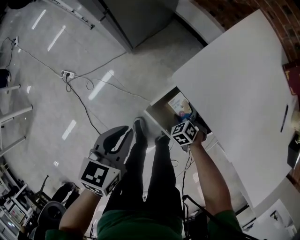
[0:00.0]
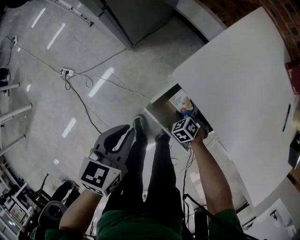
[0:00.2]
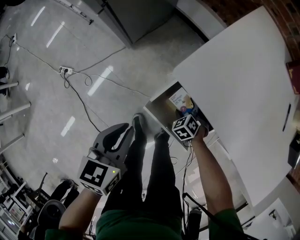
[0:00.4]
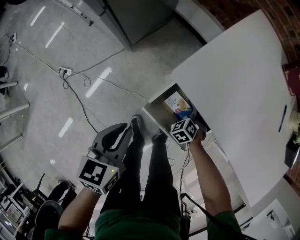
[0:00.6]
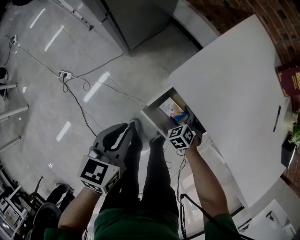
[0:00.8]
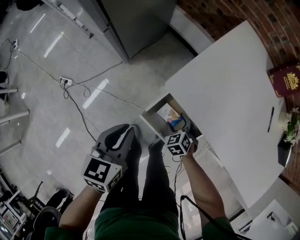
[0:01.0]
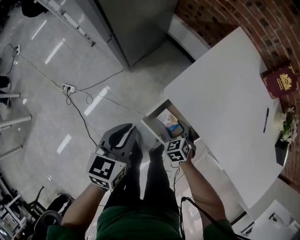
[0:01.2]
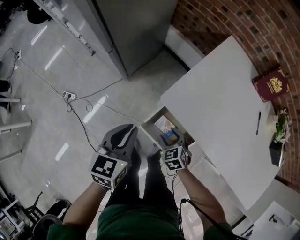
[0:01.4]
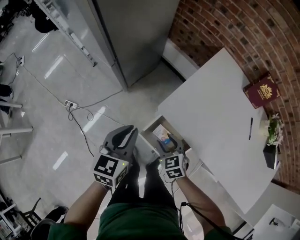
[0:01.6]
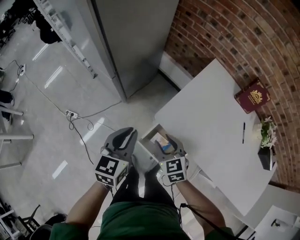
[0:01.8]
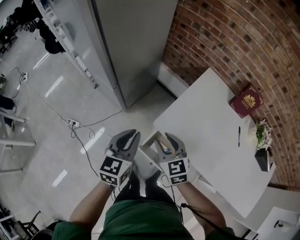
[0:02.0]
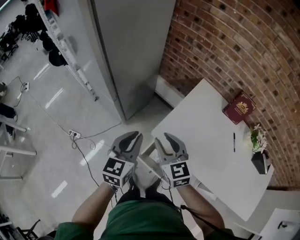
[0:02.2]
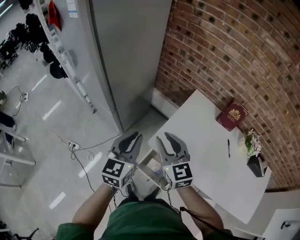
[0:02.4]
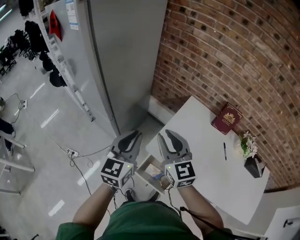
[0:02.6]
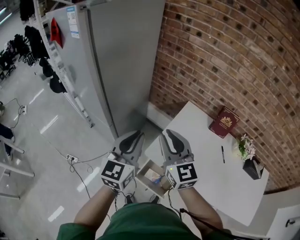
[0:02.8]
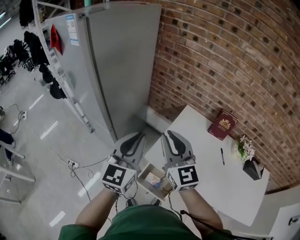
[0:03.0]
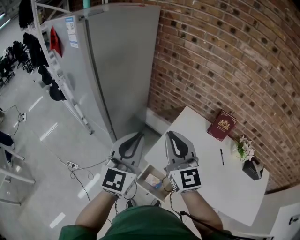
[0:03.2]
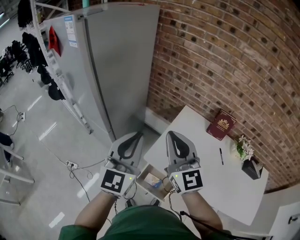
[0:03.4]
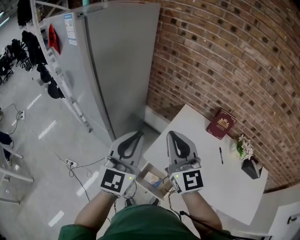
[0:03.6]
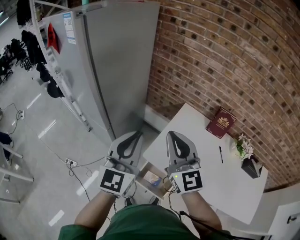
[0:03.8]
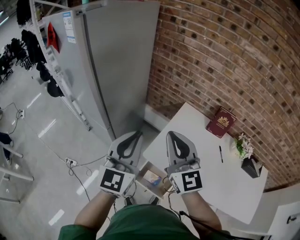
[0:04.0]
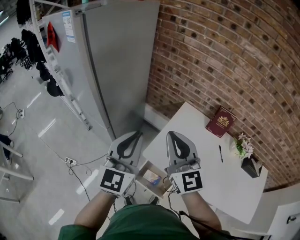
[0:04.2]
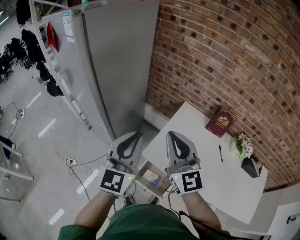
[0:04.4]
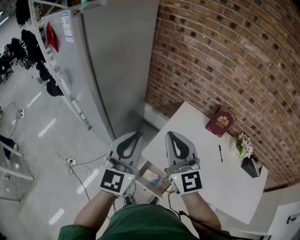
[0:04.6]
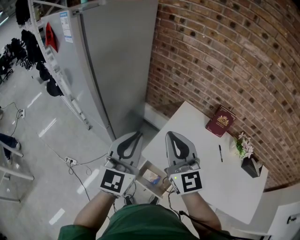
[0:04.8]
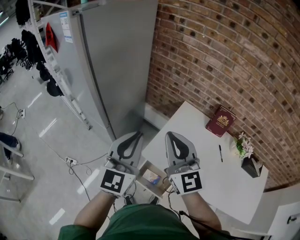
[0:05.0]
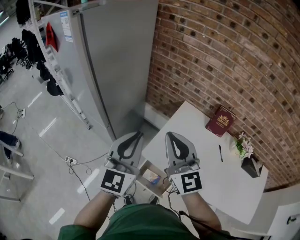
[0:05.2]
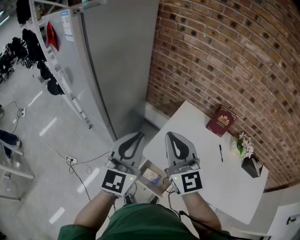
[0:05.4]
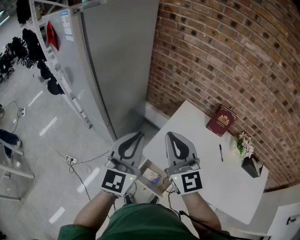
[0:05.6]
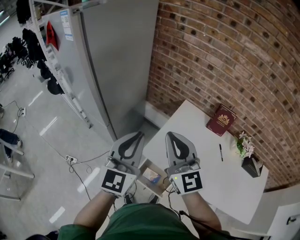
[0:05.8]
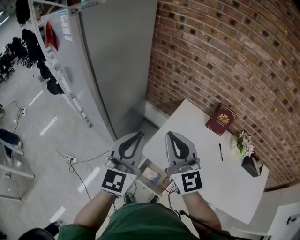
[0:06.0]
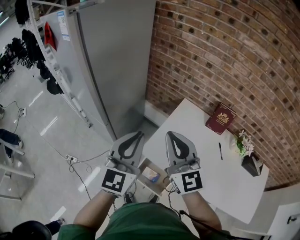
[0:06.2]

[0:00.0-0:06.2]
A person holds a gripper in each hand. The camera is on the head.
0:00.0 to 0:01.6: The right gripper moves upward, about 25 cm, changes its angle by approximately 30 degrees, and closes its fingers. Meanwhile the left gripper moves upward and forward, approximately 15 cm.
0:01.6 to 0:03.2: The grippers both shift upward by about 40 cm. The left gripper points its fingers approximately 30 degrees further upward. Meanwhile the right gripper tips its fingers upward by roughly 50 degrees, and closes up.
0:03.2 to 0:06.2: The grippers make only small movements.

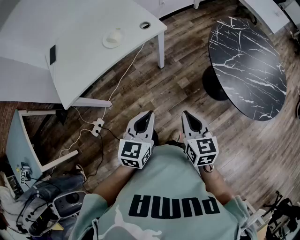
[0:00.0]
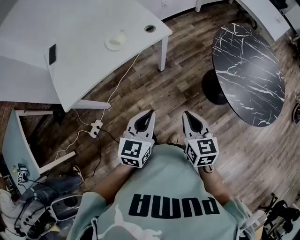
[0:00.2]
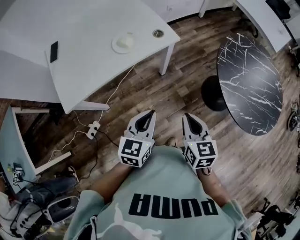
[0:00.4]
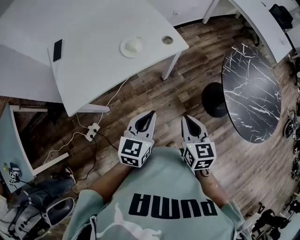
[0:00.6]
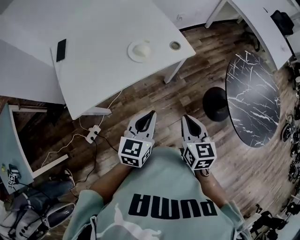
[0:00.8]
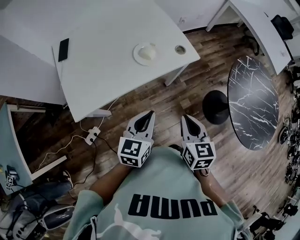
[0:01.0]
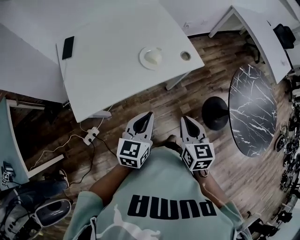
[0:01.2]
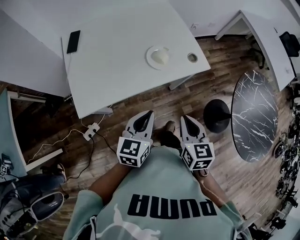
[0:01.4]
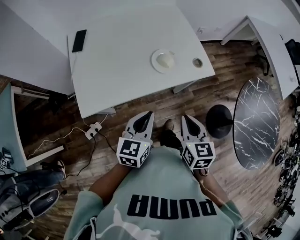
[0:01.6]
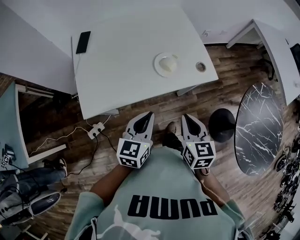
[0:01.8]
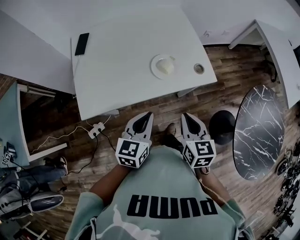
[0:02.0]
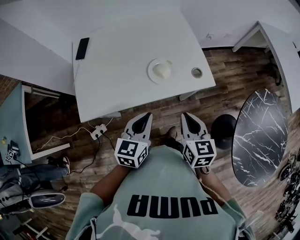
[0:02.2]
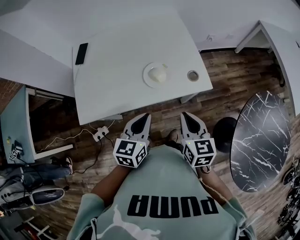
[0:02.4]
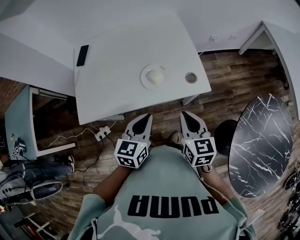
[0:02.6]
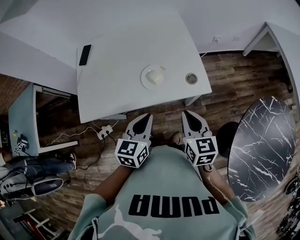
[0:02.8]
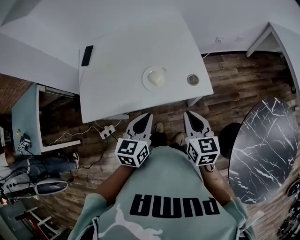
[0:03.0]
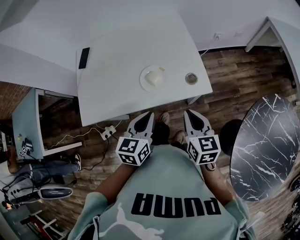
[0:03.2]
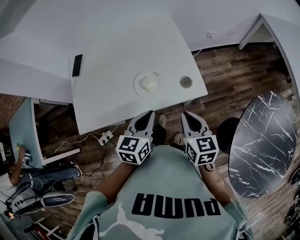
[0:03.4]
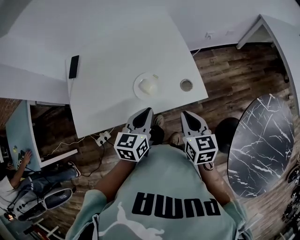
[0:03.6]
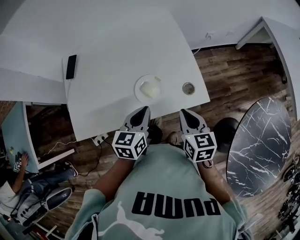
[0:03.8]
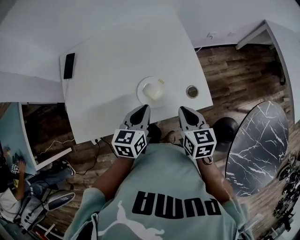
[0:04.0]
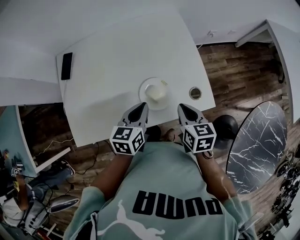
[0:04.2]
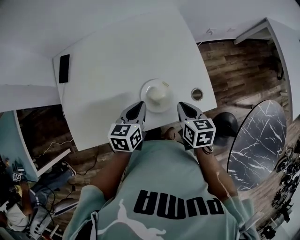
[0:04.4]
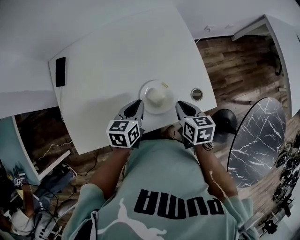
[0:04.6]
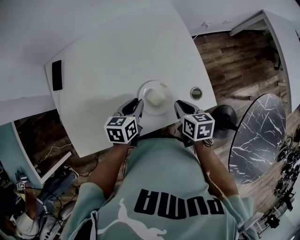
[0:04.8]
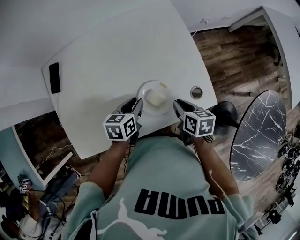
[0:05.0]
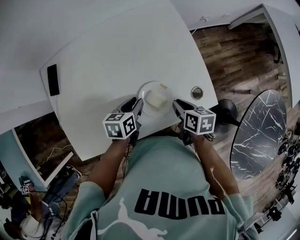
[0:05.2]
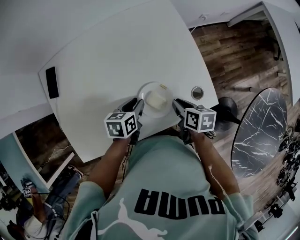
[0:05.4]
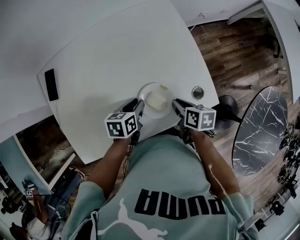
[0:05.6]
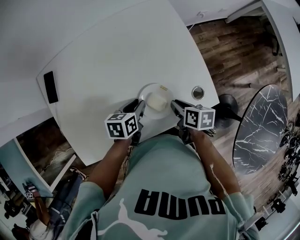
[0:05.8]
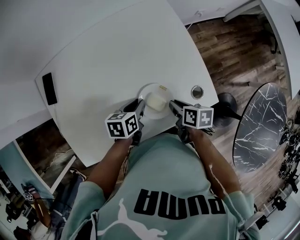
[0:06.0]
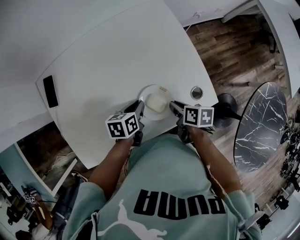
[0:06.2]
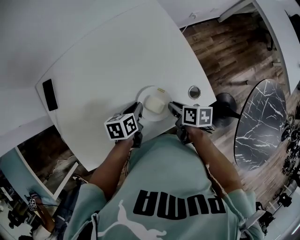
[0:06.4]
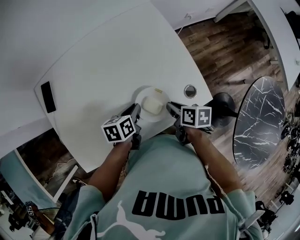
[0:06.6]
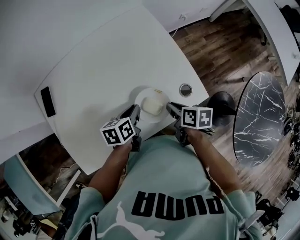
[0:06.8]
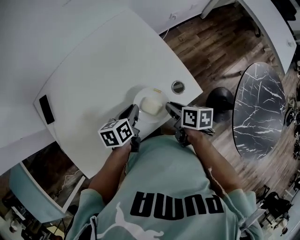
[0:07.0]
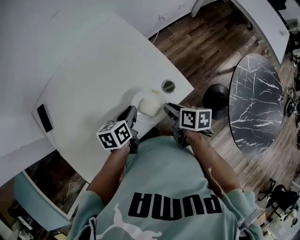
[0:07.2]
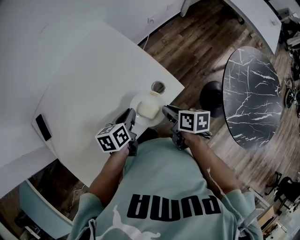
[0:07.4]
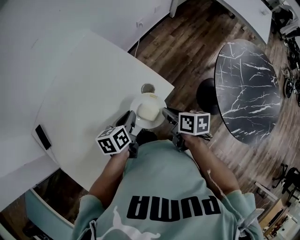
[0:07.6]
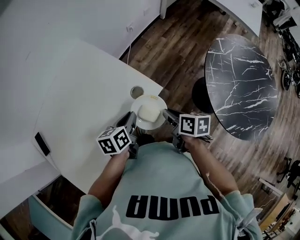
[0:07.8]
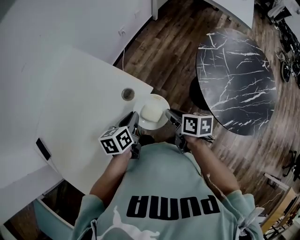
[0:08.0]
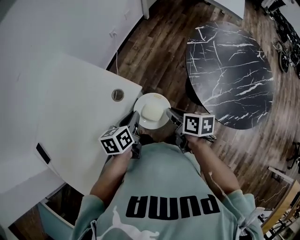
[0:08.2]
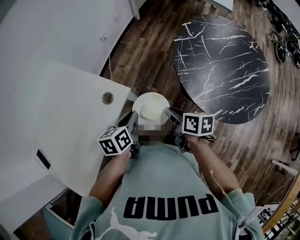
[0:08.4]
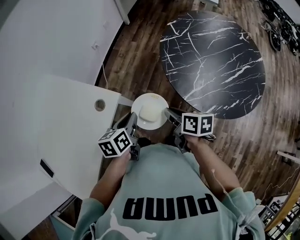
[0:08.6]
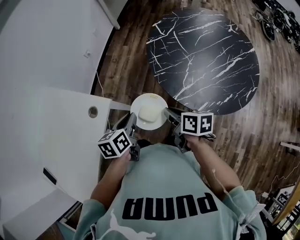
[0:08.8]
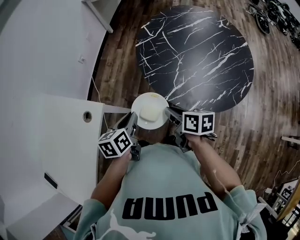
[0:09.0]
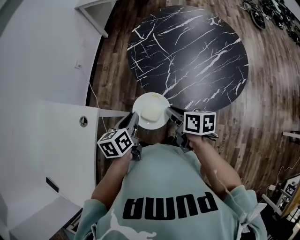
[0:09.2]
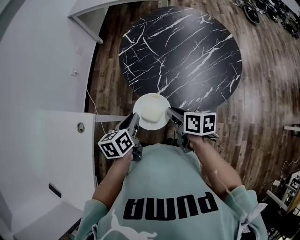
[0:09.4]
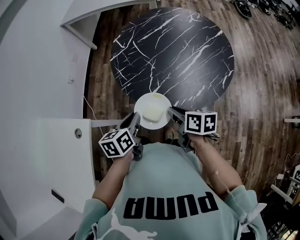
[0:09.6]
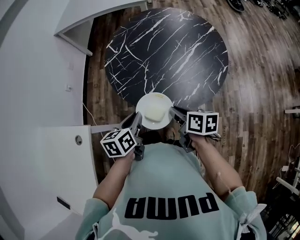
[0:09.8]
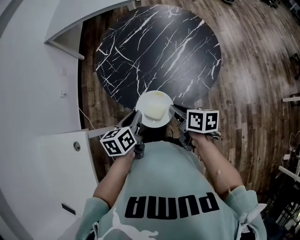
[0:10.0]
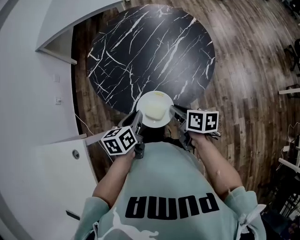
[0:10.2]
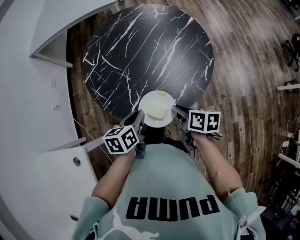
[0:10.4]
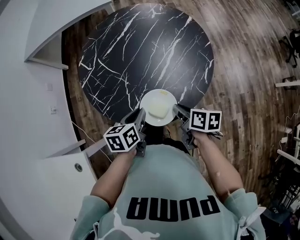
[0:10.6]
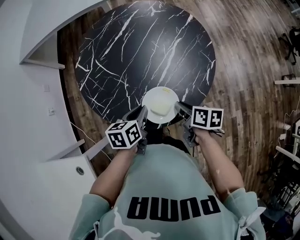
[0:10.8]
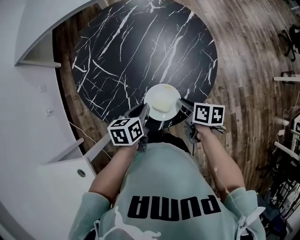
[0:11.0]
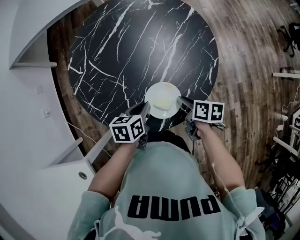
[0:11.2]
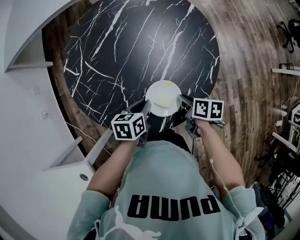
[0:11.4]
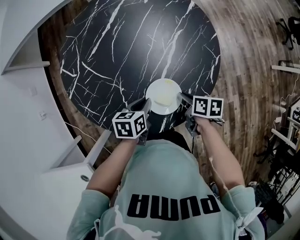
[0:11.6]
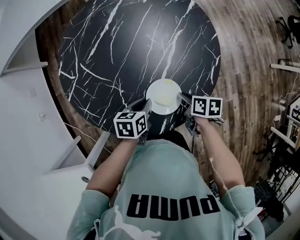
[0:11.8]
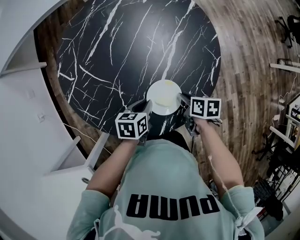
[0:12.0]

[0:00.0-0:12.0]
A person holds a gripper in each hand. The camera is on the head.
0:00.0 to 0:01.6: Both grippers travel together to the left and forward, approximately 30 cm.
0:01.6 to 0:03.0: The grippers both shift to the right and forward by approximately 15 cm.
0:03.0 to 0:04.4: Both grippers travel together forward, downward and to the left, roughly 20 cm. The right gripper rotates approximately 20 degrees.
0:04.4 to 0:06.0: Both grippers travel together downward, roughly 10 cm. The left gripper rotates about 20 degrees, while the right gripper swivels approximately 30 degrees.
0:06.0 to 0:07.6: The right gripper travels to the right, upward and backward by some 20 cm, and rotates approximately 30 degrees, while the left gripper travels to the right and upward by some 15 cm.
0:07.6 to 0:09.0: The grippers both shift to the right by some 35 cm. The left gripper changes its angle by roughly 30 degrees, while the right gripper changes its angle by some 30 degrees.
0:09.0 to 0:10.4: The right gripper changes place by approximately 25 cm, and changes its angle by approximately 30 degrees. Meanwhile the left gripper moves approximately 25 cm, and rotates some 30 degrees.
0:10.4 to 0:12.0: The two grippers go about 15 cm downward and forward. The left gripper rotates roughly 20 degrees.

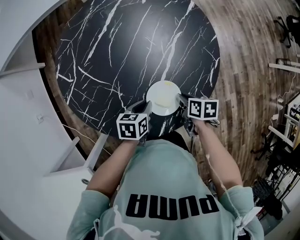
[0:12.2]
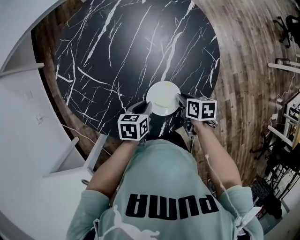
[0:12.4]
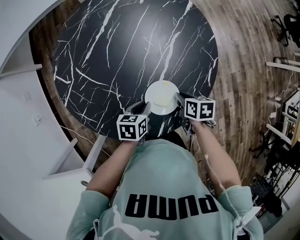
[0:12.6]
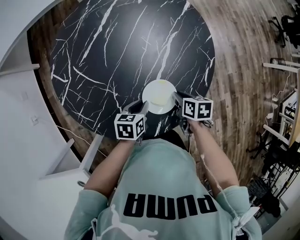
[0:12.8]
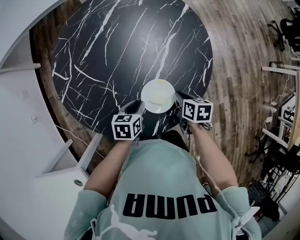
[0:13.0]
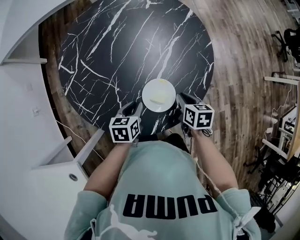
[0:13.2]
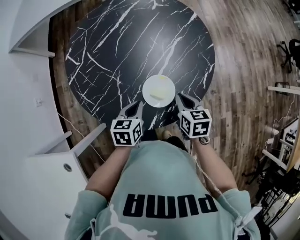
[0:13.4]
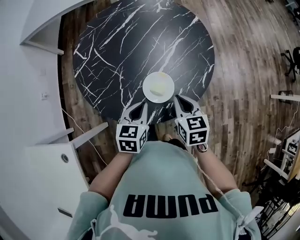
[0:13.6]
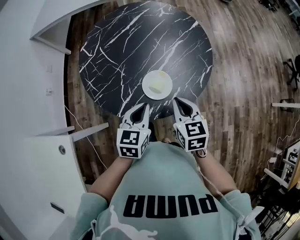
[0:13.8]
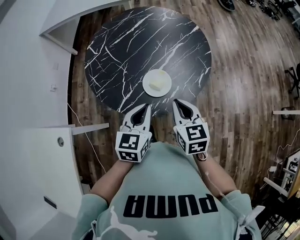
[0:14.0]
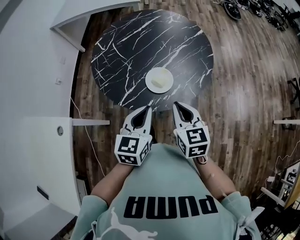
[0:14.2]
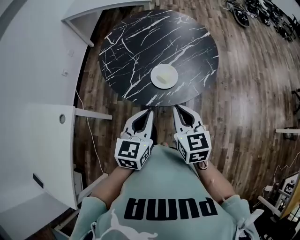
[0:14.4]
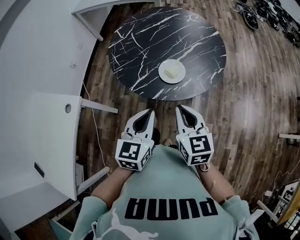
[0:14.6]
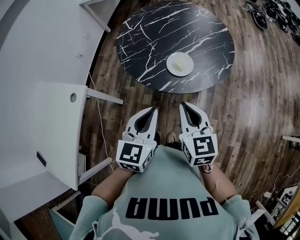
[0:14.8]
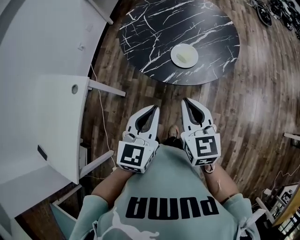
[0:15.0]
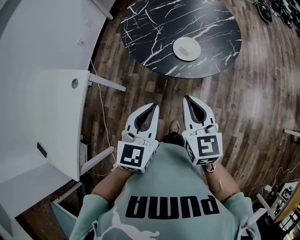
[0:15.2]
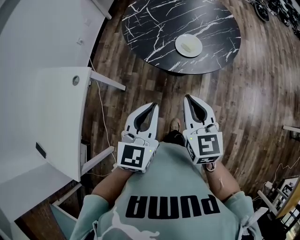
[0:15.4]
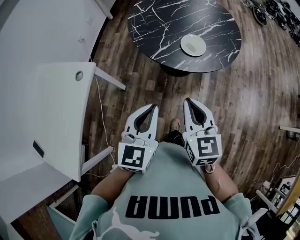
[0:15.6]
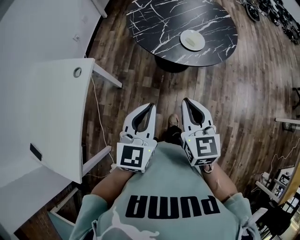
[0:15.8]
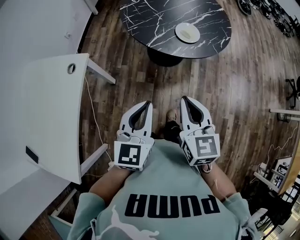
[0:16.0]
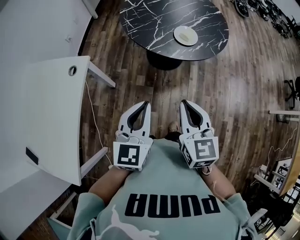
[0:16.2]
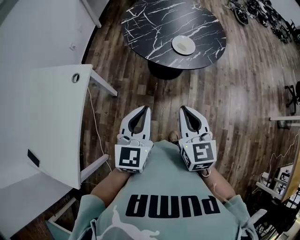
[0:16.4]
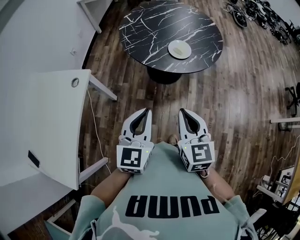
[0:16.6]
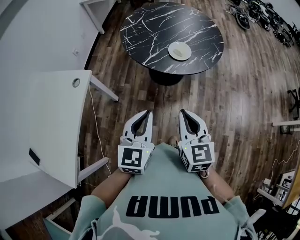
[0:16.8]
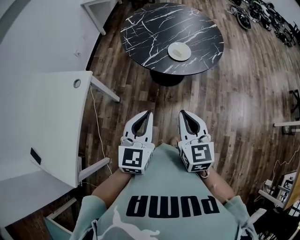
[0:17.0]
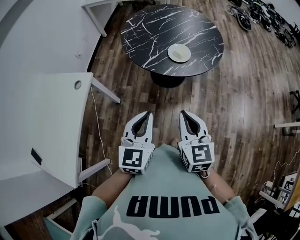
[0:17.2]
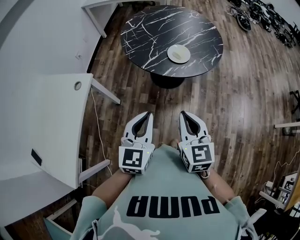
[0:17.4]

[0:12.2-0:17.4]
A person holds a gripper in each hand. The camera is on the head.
0:12.2 to 0:14.0: The two grippers go approximately 25 cm upward and backward. The left gripper swivels about 50 degrees; the right gripper rolls counterclockwise, seen from behind, by some 50 degrees.
0:14.0 to 0:15.6: Both grippers travel together backward and to the left, approximately 30 cm.
0:15.6 to 0:17.4: Both grippers move backward, roughly 5 cm. The left gripper reaches roughly 5 cm to the left, then returns.
